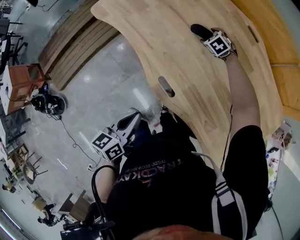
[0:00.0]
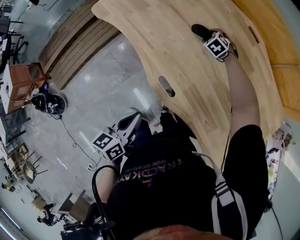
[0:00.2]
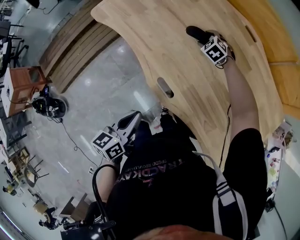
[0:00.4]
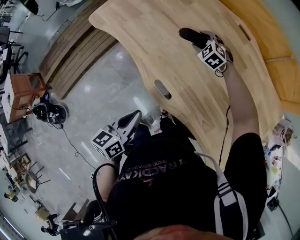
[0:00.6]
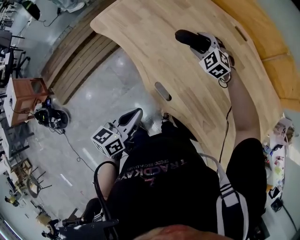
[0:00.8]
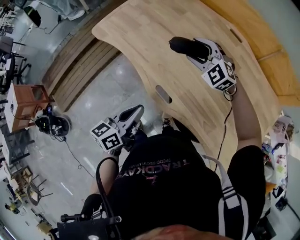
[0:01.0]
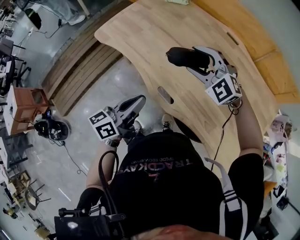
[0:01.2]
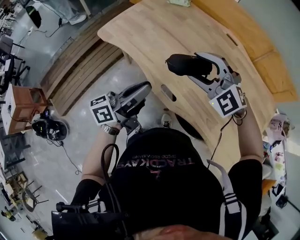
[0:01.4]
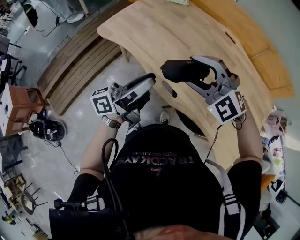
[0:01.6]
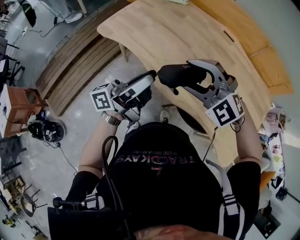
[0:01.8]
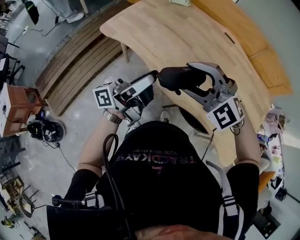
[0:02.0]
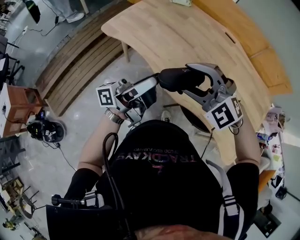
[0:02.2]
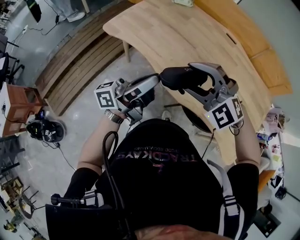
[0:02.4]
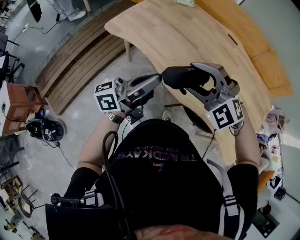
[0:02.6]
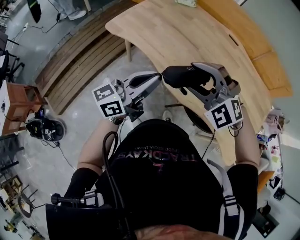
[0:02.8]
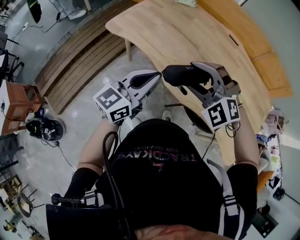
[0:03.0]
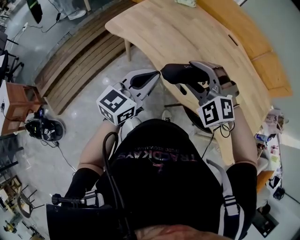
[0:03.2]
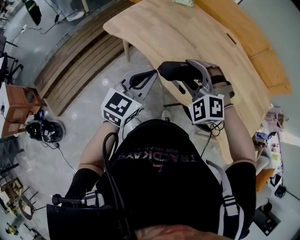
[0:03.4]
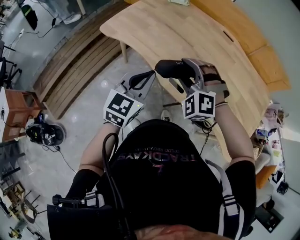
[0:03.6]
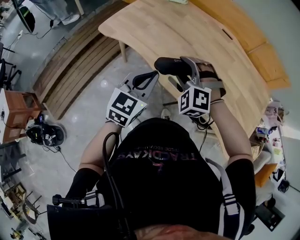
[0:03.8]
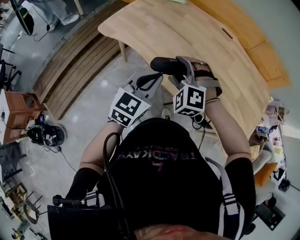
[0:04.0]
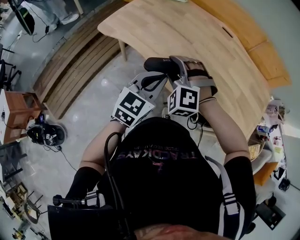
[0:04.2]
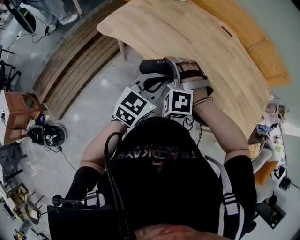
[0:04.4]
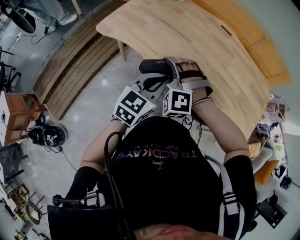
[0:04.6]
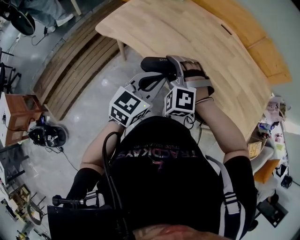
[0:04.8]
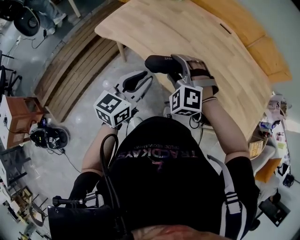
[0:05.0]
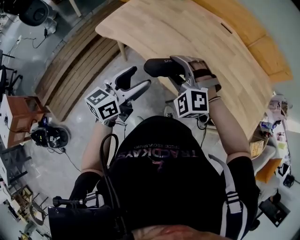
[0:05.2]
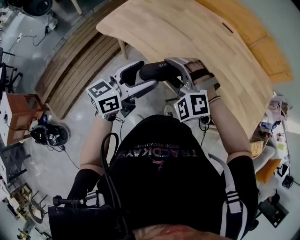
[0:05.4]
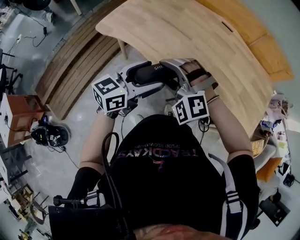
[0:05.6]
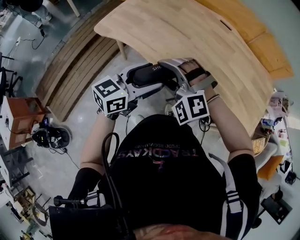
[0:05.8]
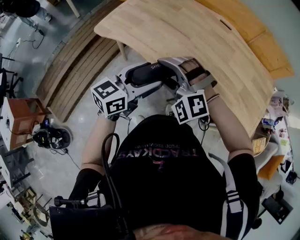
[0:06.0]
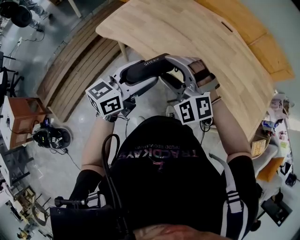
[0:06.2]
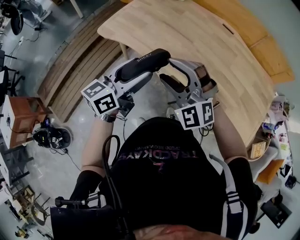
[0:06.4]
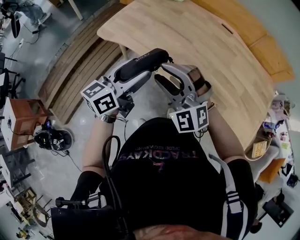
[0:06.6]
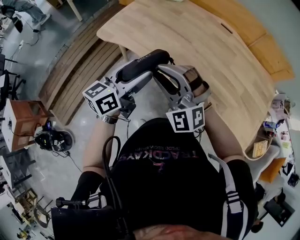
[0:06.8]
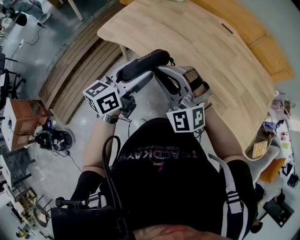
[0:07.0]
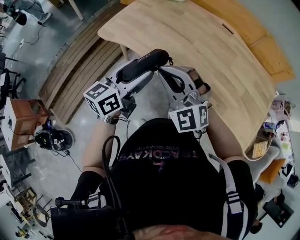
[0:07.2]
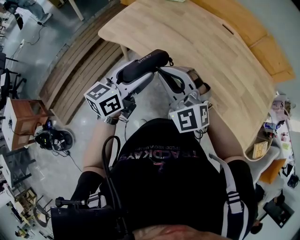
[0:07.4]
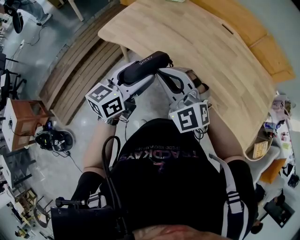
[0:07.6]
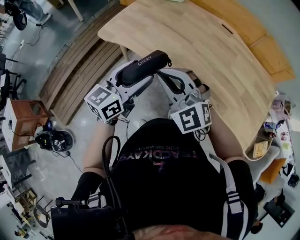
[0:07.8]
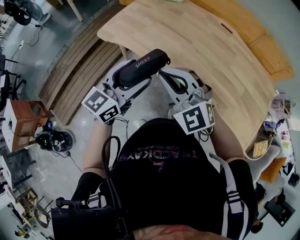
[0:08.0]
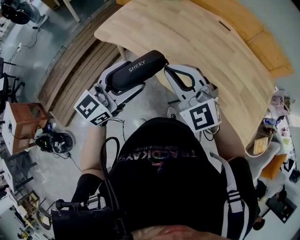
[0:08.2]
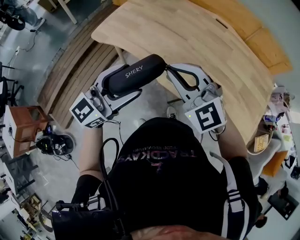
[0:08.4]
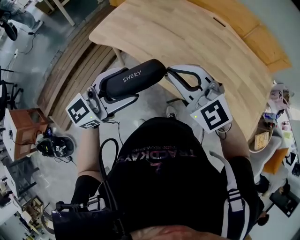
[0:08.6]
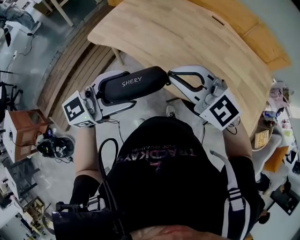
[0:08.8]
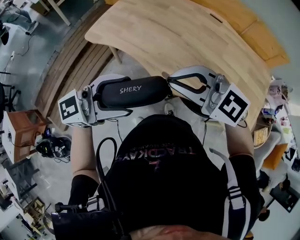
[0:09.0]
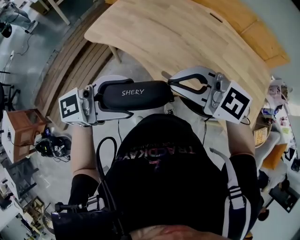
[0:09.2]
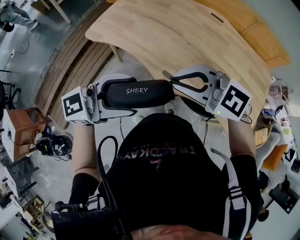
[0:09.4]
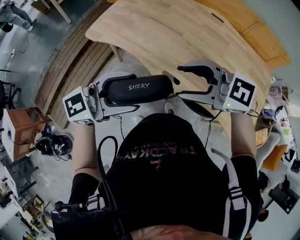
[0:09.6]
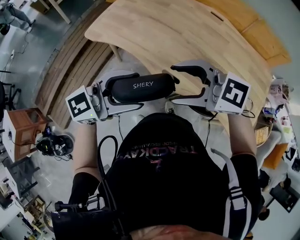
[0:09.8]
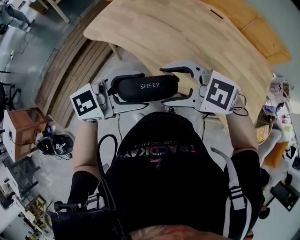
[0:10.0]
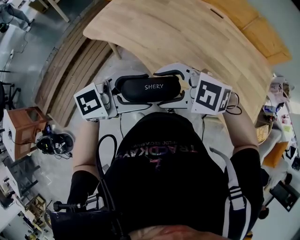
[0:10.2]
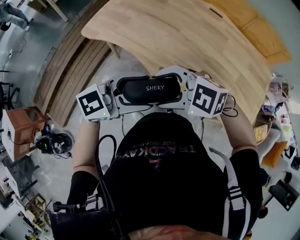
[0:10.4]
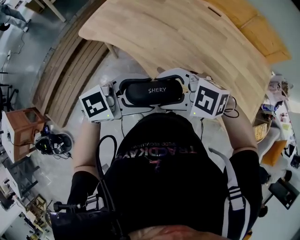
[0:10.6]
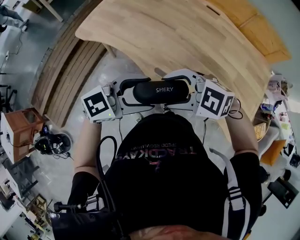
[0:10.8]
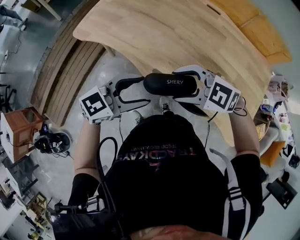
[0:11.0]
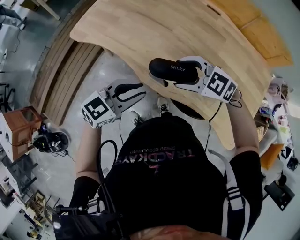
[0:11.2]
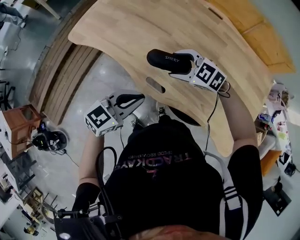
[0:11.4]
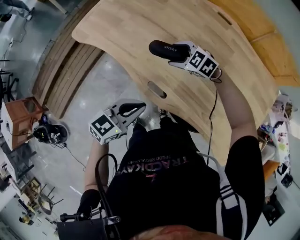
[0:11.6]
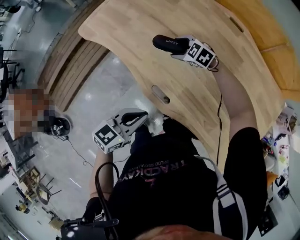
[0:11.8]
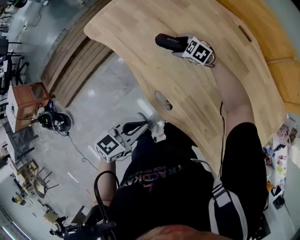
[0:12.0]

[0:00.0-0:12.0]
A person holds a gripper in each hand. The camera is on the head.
0:00.0 to 0:01.6: The left gripper travels upward and forward by about 20 cm, angles its fingers upward, by about 50 degrees, and opens its fingers, while the right gripper moves upward and backward, roughly 50 cm, and points its fingers approximately 40 degrees further upward.
0:01.6 to 0:03.0: The left gripper twists about 40 degrees clockwise, seen from behind, and closes. Meanwhile the right gripper is displaced to the left by approximately 5 cm.
0:03.0 to 0:04.4: The left gripper heads to the right, covering about 5 cm, and turns by approximately 20 degrees; the right gripper travels downward by approximately 5 cm, and turns by approximately 30 degrees.
0:04.4 to 0:06.0: The right gripper shifts by approximately 5 cm; the left gripper swivels approximately 20 degrees, and opens up.
0:06.0 to 0:07.6: The left gripper shifts by about 5 cm. Meanwhile the right gripper shifts some 5 cm upward, rotates approximately 30 degrees, and closes.
0:07.6 to 0:09.0: The left gripper changes place by about 15 cm, and changes its angle by approximately 40 degrees. The right gripper goes about 5 cm upward, and swivels some 40 degrees.
0:09.0 to 0:10.4: The right gripper moves downward, roughly 10 cm, turns by some 30 degrees, and opens. Meanwhile the left gripper is displaced downward by some 5 cm.
0:10.4 to 0:12.0: The left gripper heads downward, covering some 15 cm, rotates roughly 50 degrees, and closes, while the right gripper shifts by some 50 cm, and swivels roughly 20 degrees.

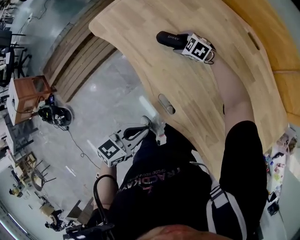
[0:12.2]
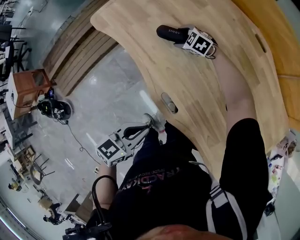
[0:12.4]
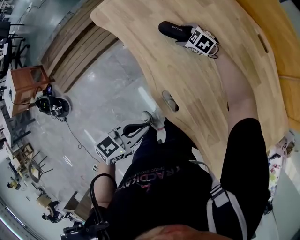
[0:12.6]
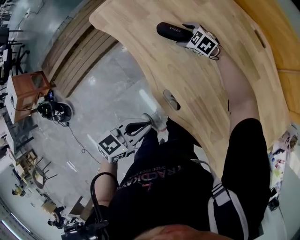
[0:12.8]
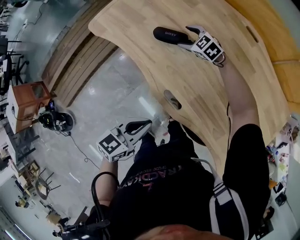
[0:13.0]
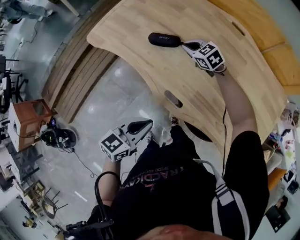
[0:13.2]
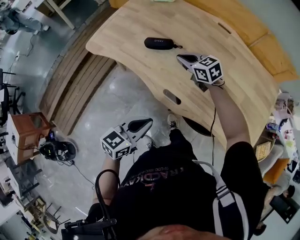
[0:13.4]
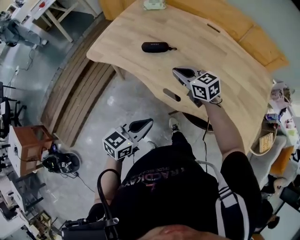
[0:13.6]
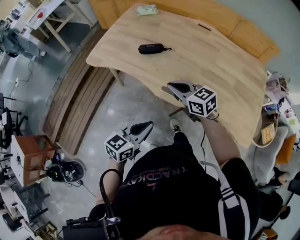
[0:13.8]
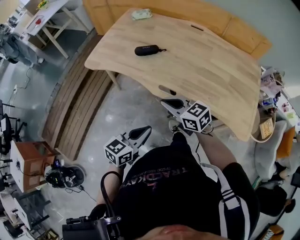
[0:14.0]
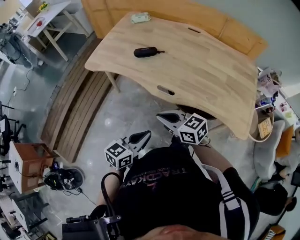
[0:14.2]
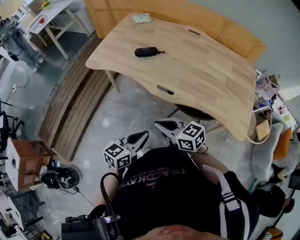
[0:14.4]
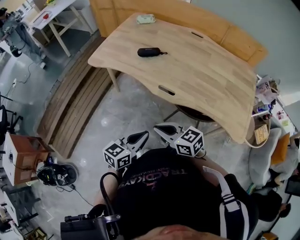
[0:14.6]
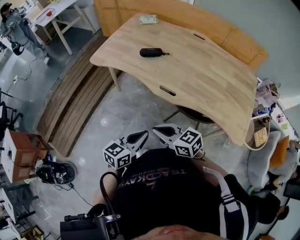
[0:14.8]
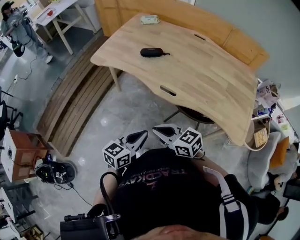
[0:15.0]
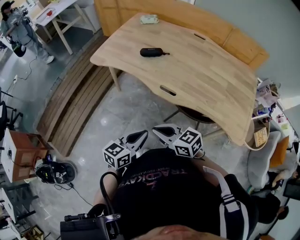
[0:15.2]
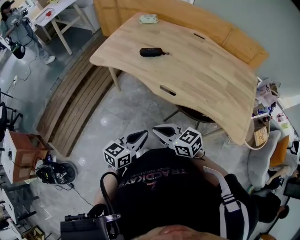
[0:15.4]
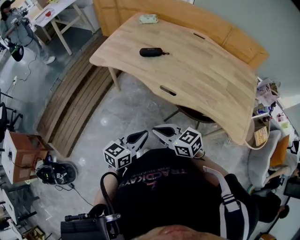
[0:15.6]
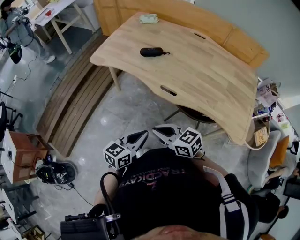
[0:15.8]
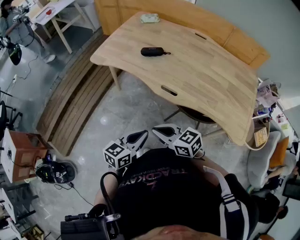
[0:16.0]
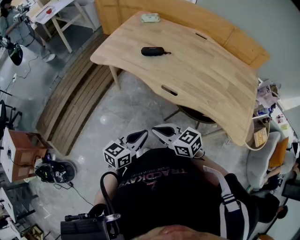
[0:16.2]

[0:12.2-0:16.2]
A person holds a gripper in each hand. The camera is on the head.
0:12.2 to 0:13.6: The right gripper heads backward and upward, covering roughly 30 cm, turns by some 50 degrees, and closes; the left gripper travels to the left by some 5 cm.
0:13.6 to 0:14.8: The left gripper is displaced backward by about 10 cm. Meanwhile the right gripper heads backward, covering approximately 30 cm.
0:14.8 to 0:16.2: Both grippers stay about where they are.

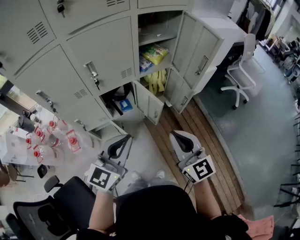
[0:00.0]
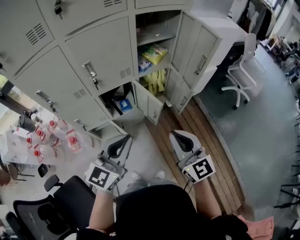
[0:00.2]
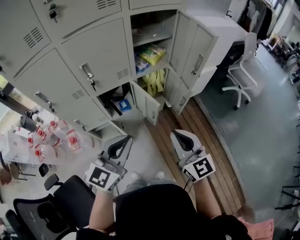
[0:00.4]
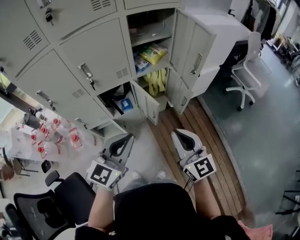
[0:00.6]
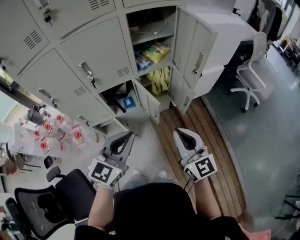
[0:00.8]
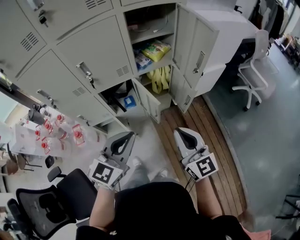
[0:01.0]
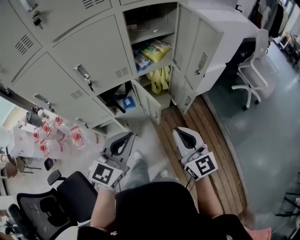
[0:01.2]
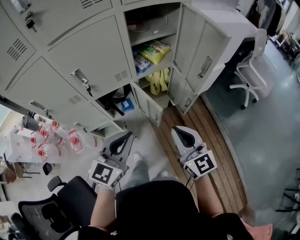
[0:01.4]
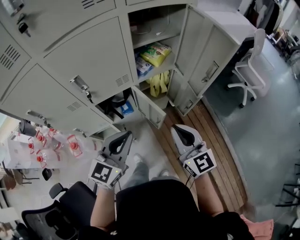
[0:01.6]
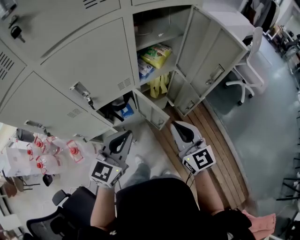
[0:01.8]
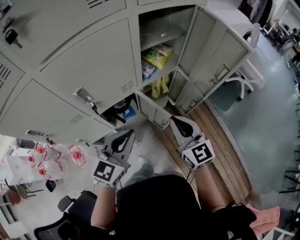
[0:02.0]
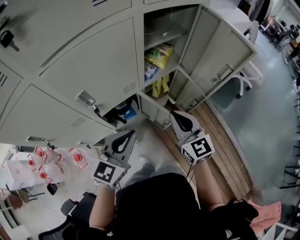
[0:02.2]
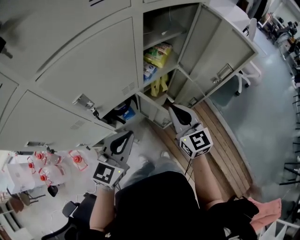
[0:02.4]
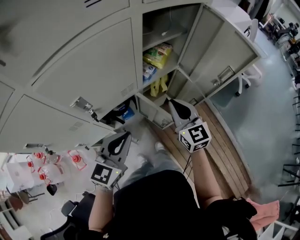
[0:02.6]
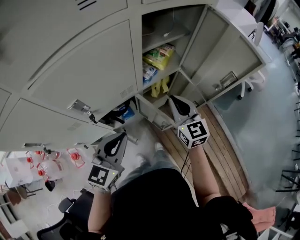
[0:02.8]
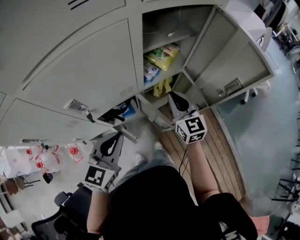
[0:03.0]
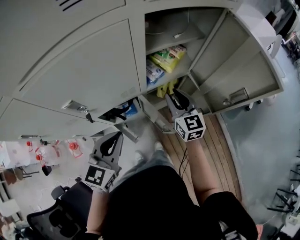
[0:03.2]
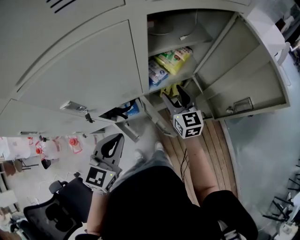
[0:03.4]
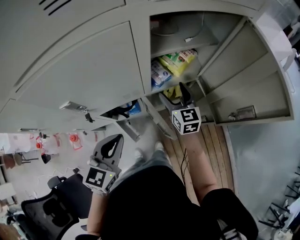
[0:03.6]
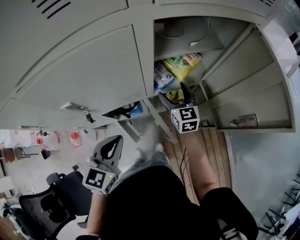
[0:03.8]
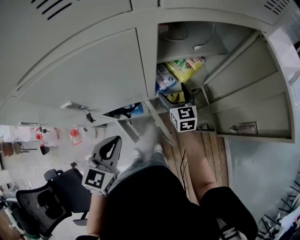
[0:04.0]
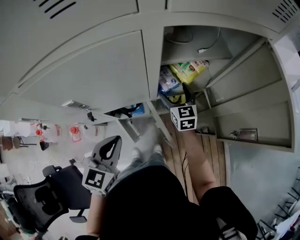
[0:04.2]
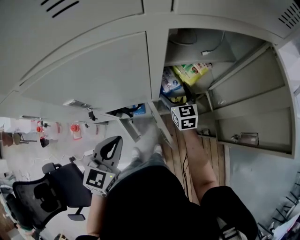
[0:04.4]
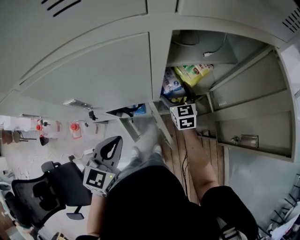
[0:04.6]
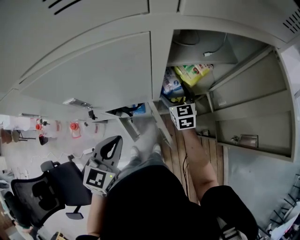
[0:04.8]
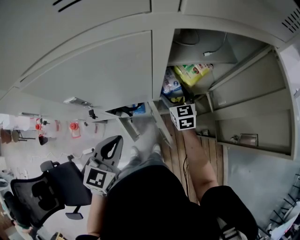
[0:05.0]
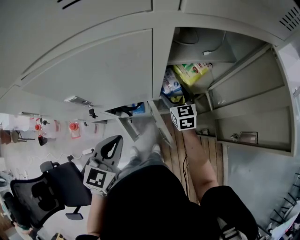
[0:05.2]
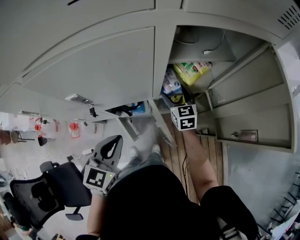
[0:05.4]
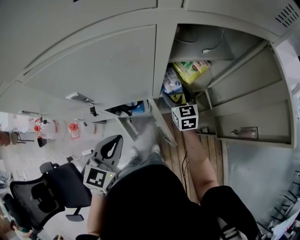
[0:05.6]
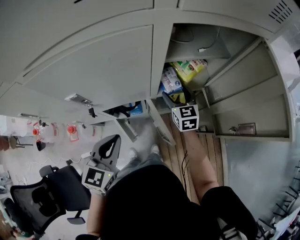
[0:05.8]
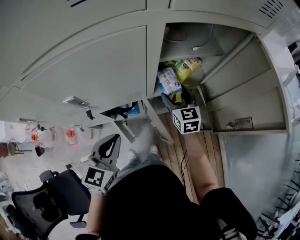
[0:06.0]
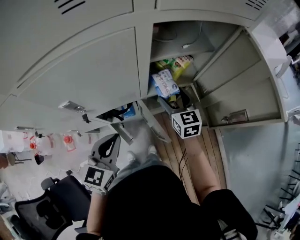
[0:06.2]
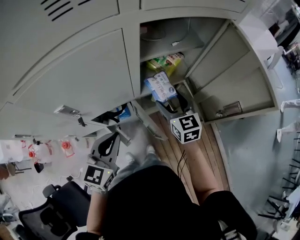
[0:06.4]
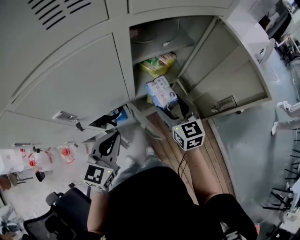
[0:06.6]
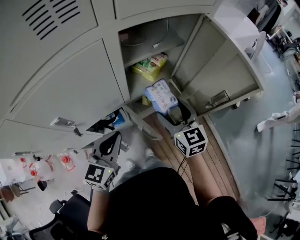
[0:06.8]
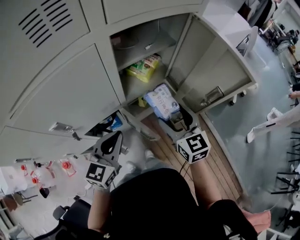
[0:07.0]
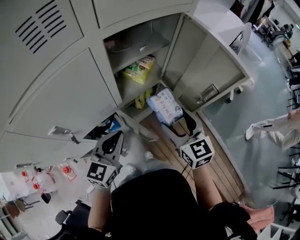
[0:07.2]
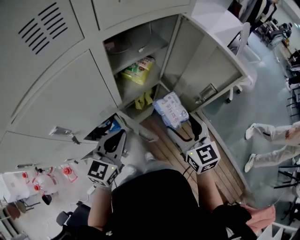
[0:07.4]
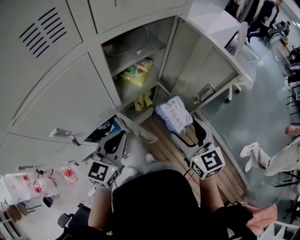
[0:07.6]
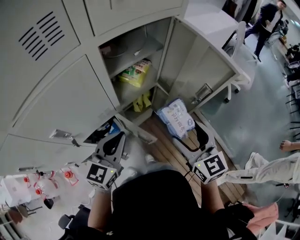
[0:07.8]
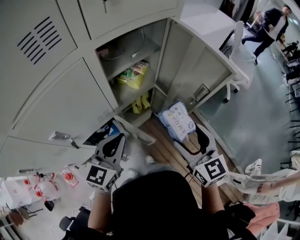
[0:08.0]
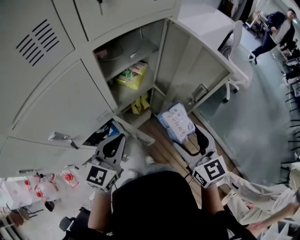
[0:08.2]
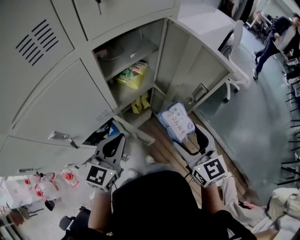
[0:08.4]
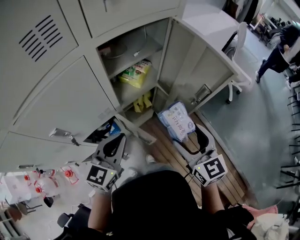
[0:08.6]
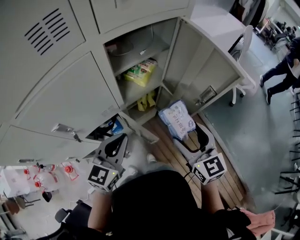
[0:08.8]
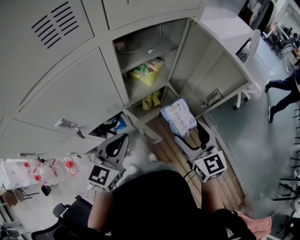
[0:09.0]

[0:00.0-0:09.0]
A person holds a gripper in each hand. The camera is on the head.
0:00.0 to 0:01.6: Both grippers travel together forward, approximately 10 cm.
0:01.6 to 0:03.0: The right gripper moves forward, roughly 25 cm; the left gripper shifts some 15 cm forward and to the left.
0:03.0 to 0:04.4: The right gripper travels forward and downward by approximately 20 cm, and opens its fingers. The left gripper turns by some 20 degrees.
0:04.4 to 0:06.0: The right gripper ends up roughly 5 cm from where it was.
0:06.0 to 0:07.6: The left gripper goes roughly 10 cm to the right, and rotates some 30 degrees. The right gripper shifts some 30 cm backward, upward and to the right.
0:07.6 to 0:09.0: The grippers move only a little.
